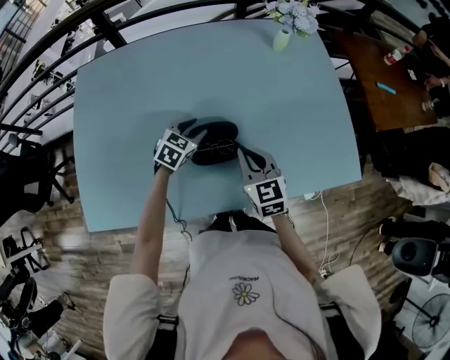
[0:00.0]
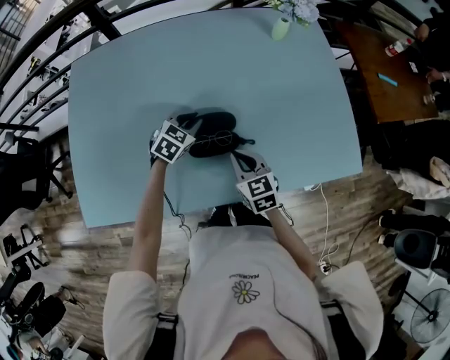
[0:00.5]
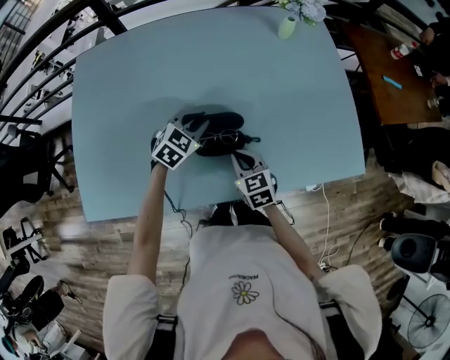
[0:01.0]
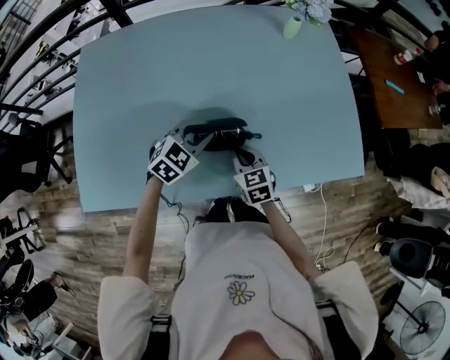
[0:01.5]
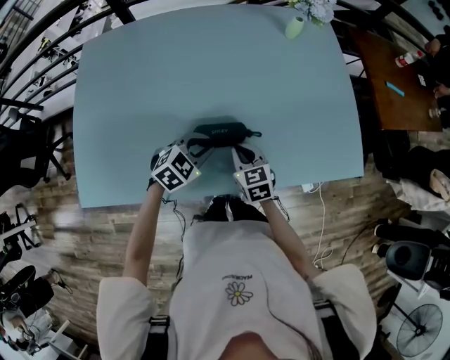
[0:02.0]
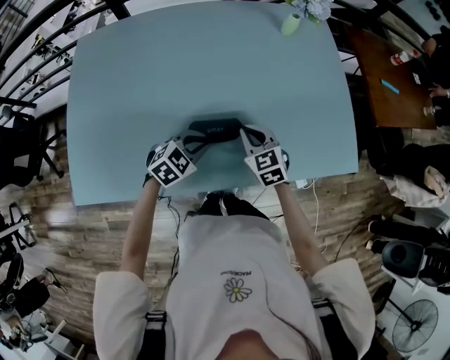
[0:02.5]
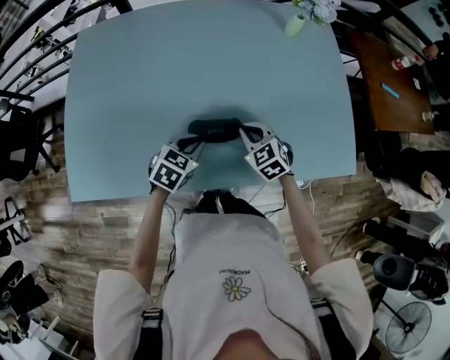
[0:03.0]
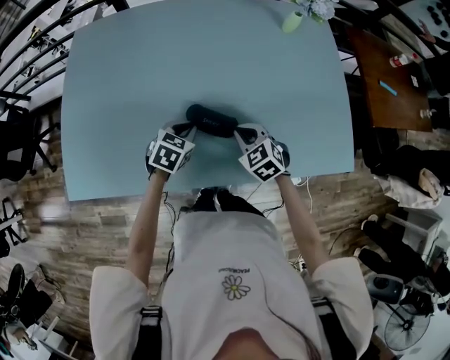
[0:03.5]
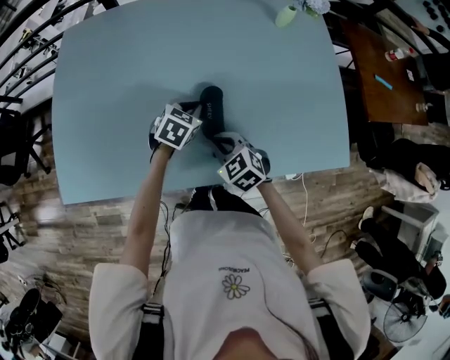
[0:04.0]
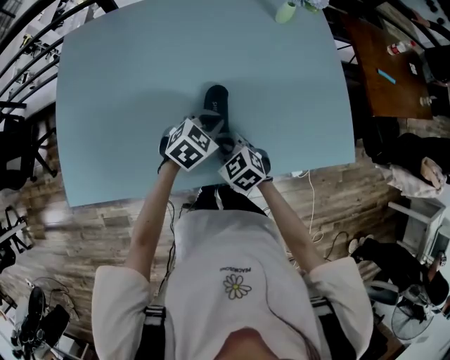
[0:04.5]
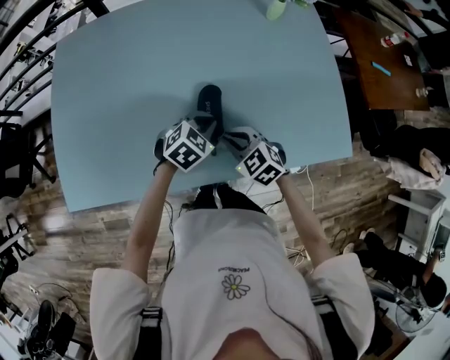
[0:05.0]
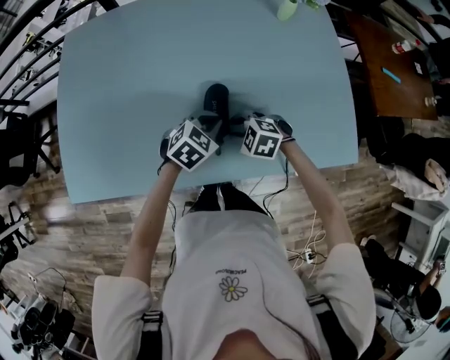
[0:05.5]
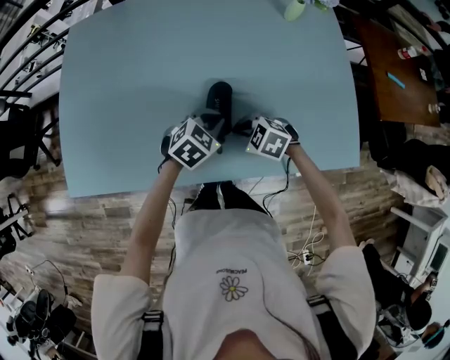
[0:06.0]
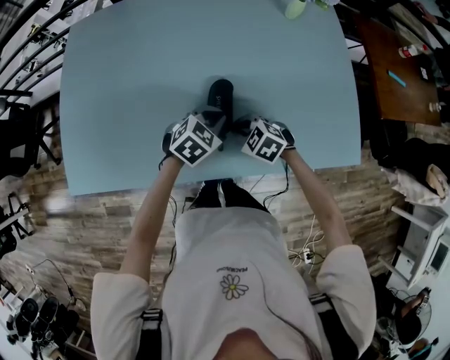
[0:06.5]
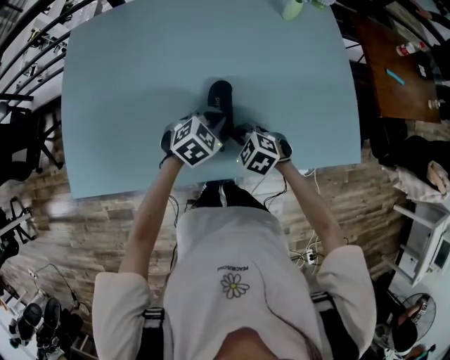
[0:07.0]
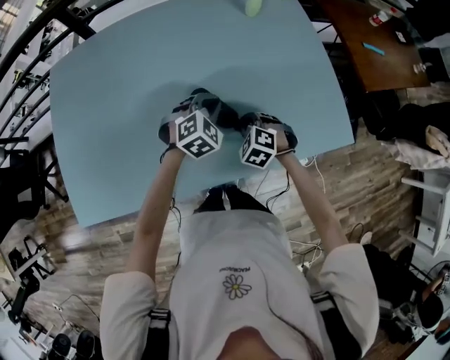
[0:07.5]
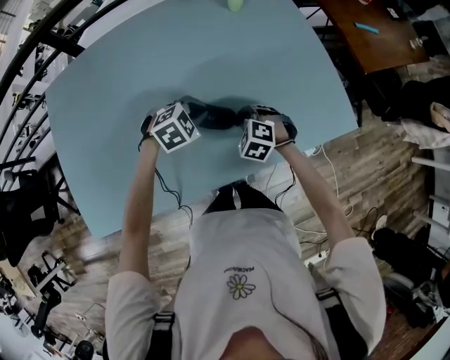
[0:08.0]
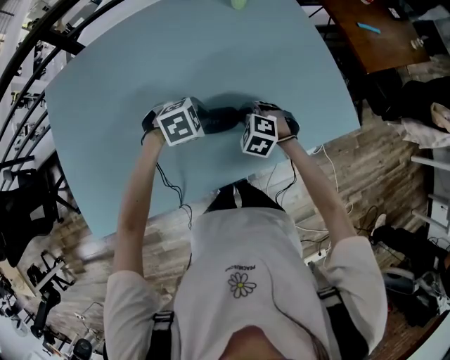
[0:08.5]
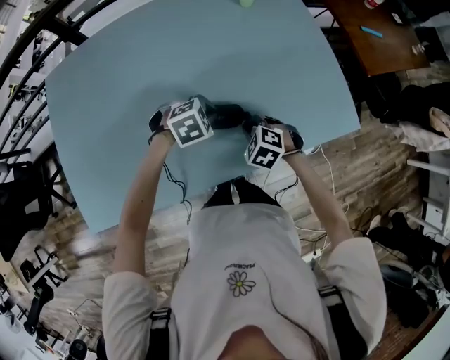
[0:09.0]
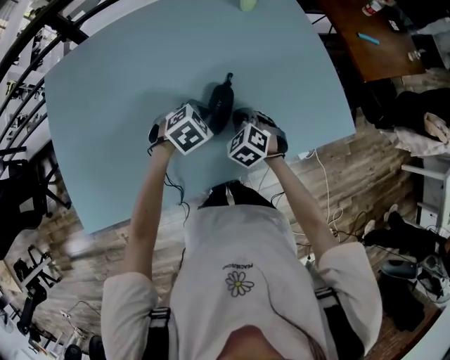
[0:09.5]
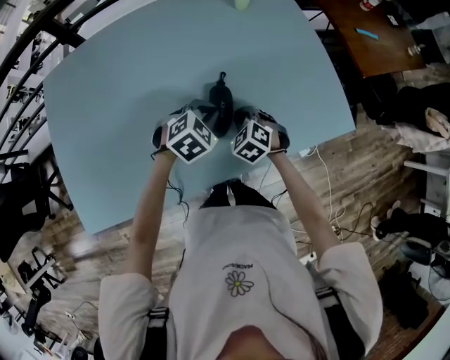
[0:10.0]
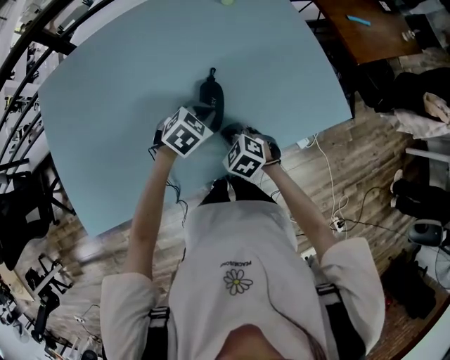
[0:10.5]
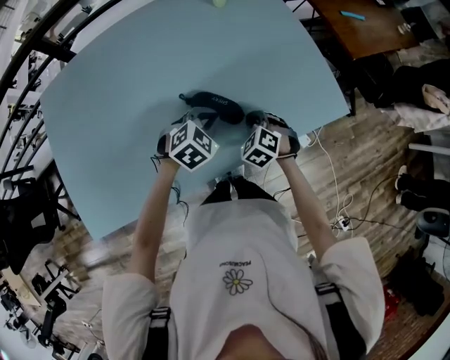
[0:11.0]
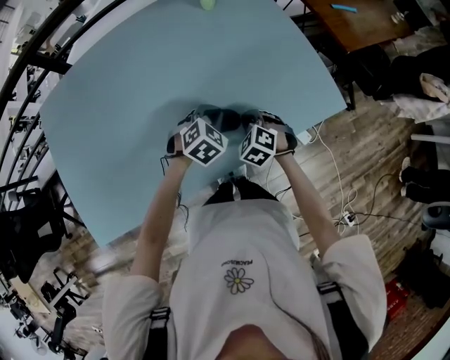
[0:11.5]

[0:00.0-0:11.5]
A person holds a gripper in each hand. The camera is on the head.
0:00.0 to 0:02.0: The right gripper shifts approximately 10 cm downward. The left gripper heads backward, covering about 15 cm, and closes.
0:02.0 to 0:04.0: The left gripper goes roughly 10 cm forward, and rotates approximately 30 degrees, while the right gripper rotates roughly 30 degrees.
0:04.0 to 0:06.0: The left gripper ends up roughly 10 cm from where it was. Meanwhile the right gripper ends up some 5 cm from where it was, changes its angle by approximately 30 degrees, and opens, then closes again.
0:06.0 to 0:07.5: The left gripper ends up approximately 10 cm from where it was, and rotates about 30 degrees. Meanwhile the right gripper shifts by approximately 10 cm, and swivels about 30 degrees.
0:07.5 to 0:09.5: The left gripper moves roughly 5 cm, and changes its angle by some 20 degrees.
0:09.5 to 0:11.5: Both grippers travel together to the right, approximately 10 cm.

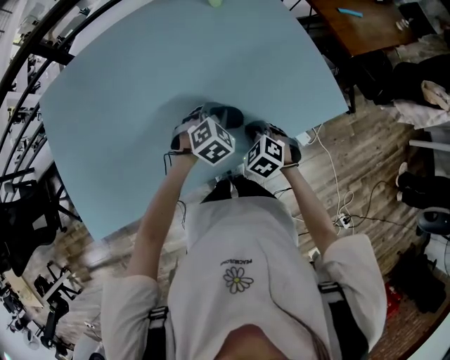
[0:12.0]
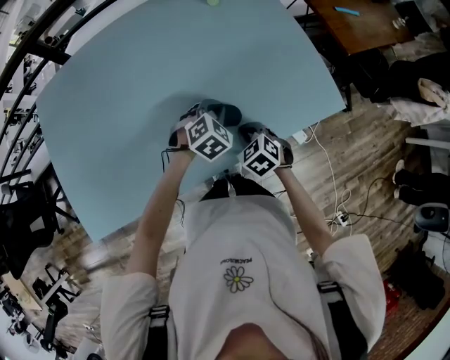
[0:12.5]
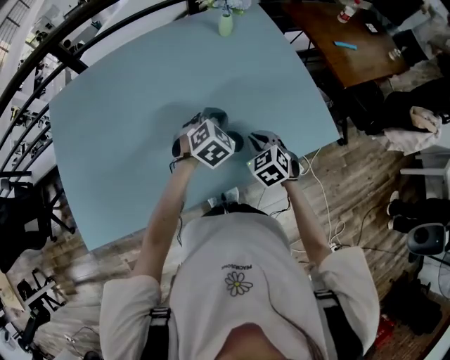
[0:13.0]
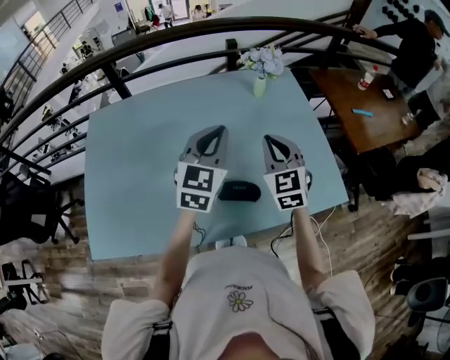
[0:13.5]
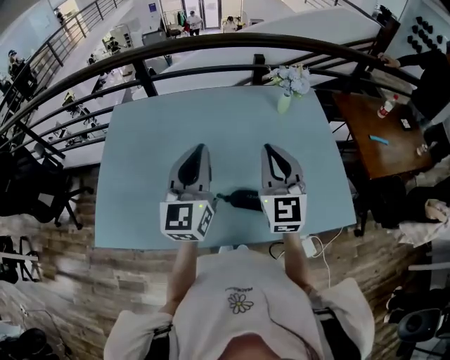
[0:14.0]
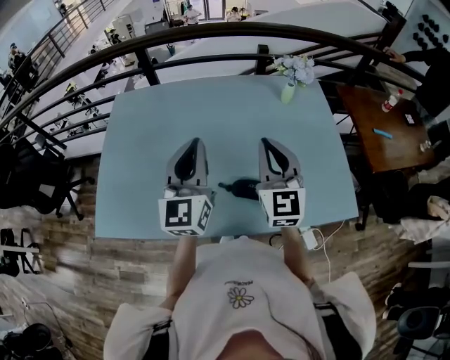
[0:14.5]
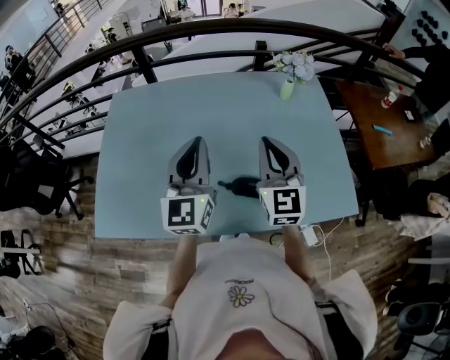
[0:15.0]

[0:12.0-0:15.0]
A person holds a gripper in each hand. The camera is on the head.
0:12.0 to 0:13.5: The right gripper goes approximately 30 cm upward and forward, and tips its fingers upward by roughly 40 degrees; the left gripper shifts about 30 cm upward, and angles its fingers upward, by about 40 degrees.
0:13.5 to 0:15.0: The left gripper goes about 15 cm to the left and backward, and changes its angle by approximately 30 degrees, while the right gripper goes some 10 cm to the left and upward.

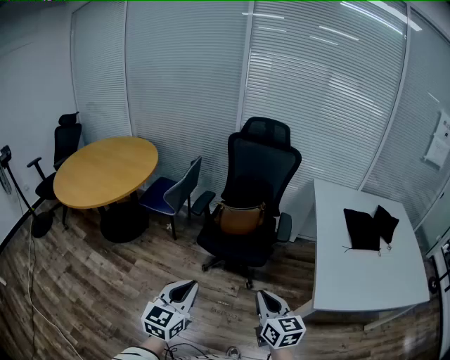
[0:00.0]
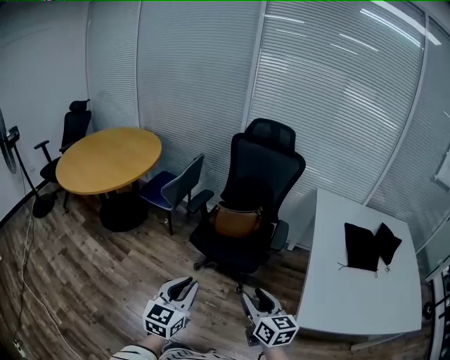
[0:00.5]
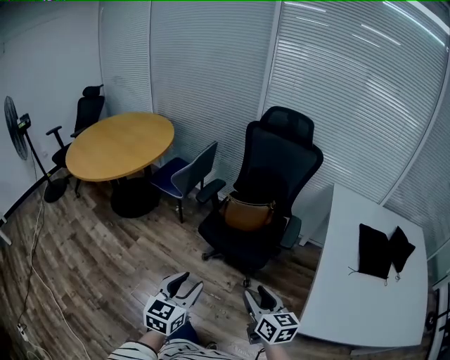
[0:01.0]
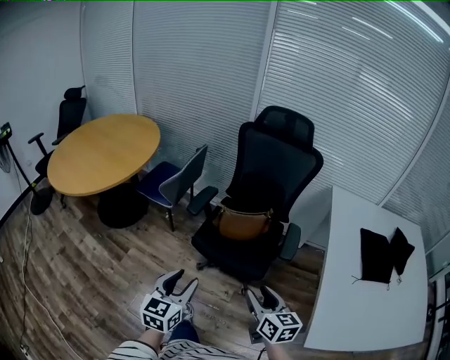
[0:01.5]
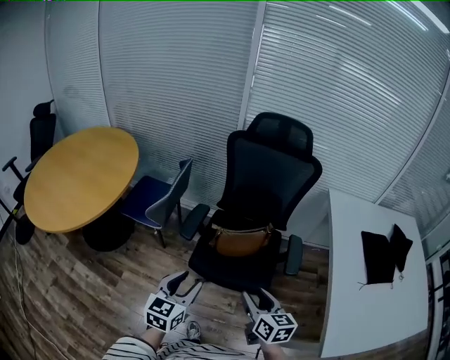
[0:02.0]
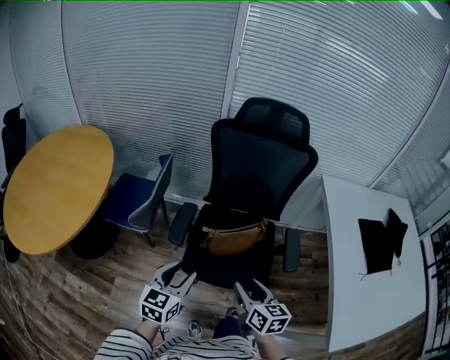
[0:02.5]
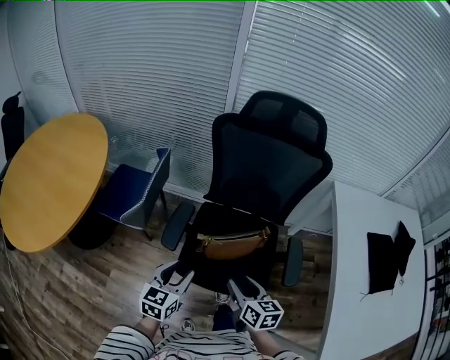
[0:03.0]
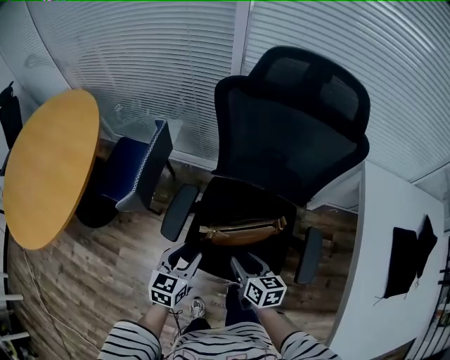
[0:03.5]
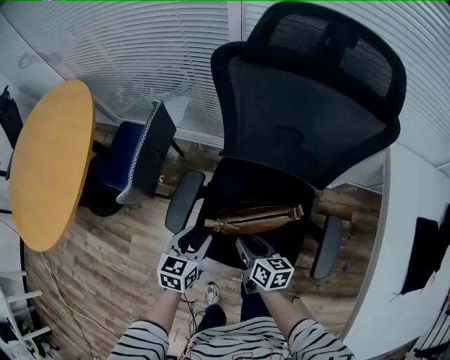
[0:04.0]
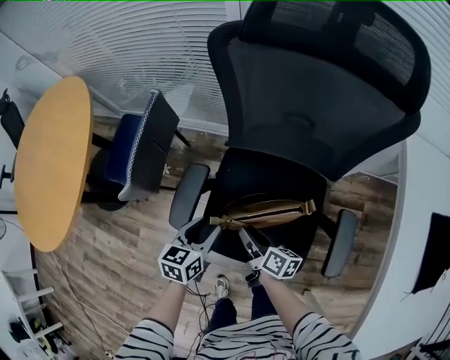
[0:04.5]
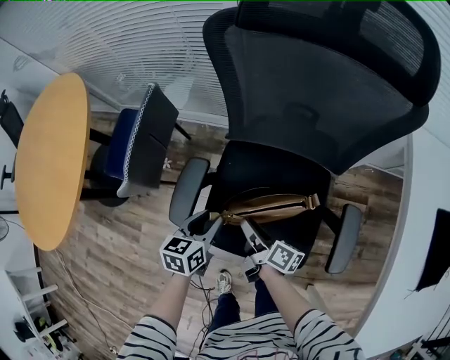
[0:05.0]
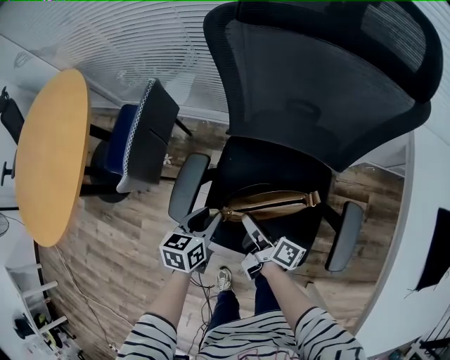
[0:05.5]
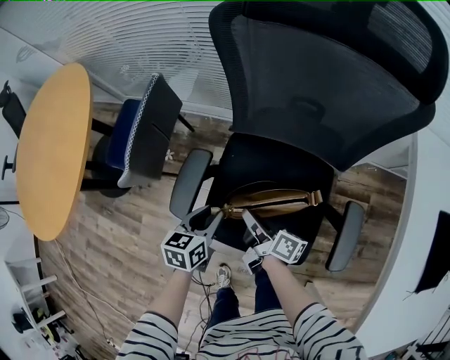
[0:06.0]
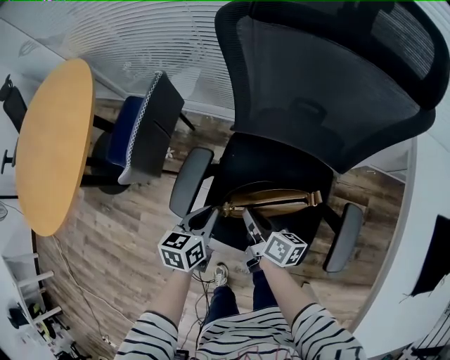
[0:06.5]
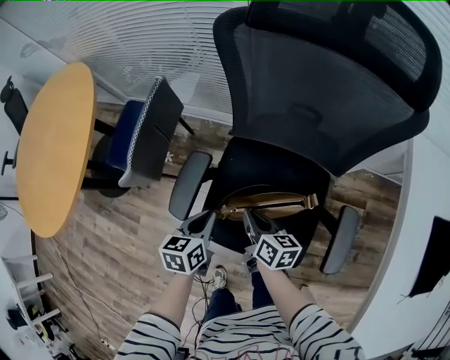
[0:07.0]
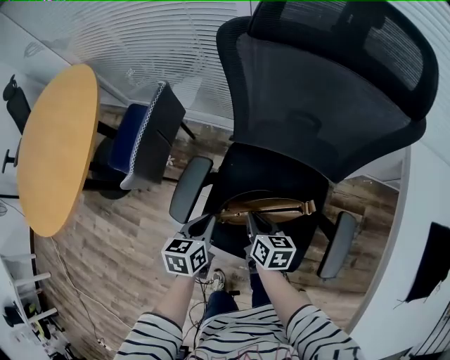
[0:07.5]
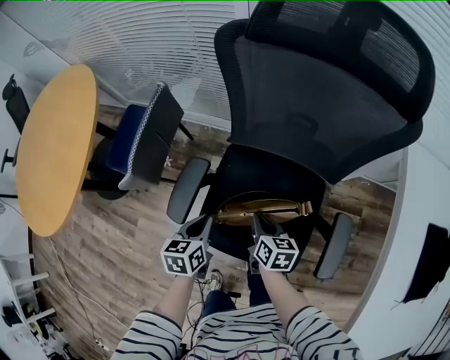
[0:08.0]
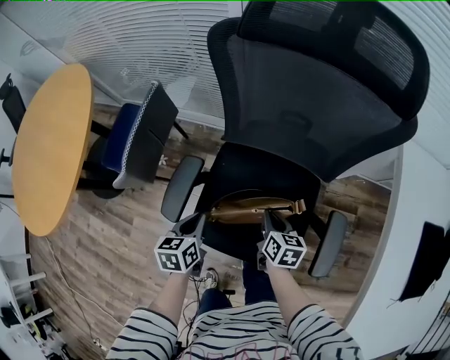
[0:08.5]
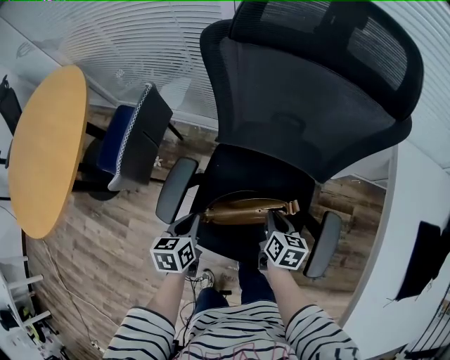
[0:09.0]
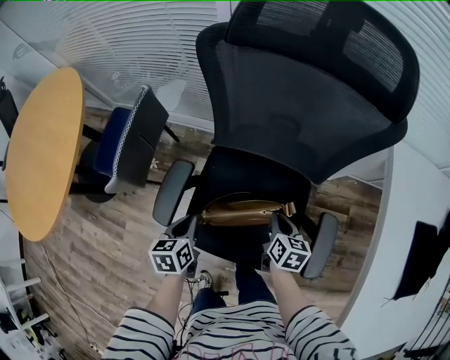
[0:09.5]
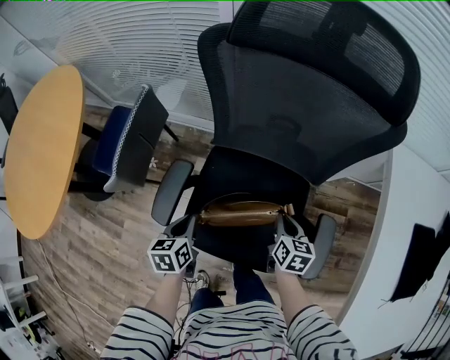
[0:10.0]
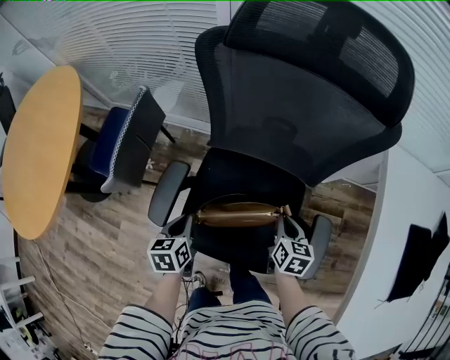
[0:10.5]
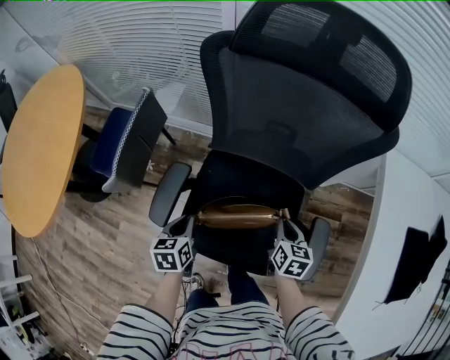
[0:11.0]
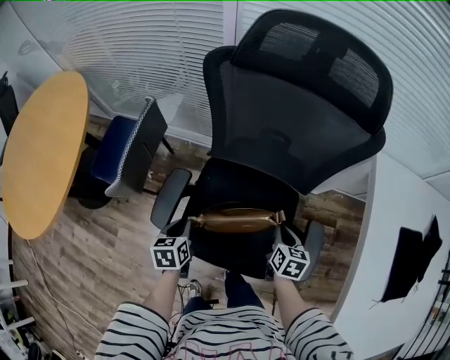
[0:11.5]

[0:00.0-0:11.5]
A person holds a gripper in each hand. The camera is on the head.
0:00.0 to 0:02.0: The two grippers go roughly 30 cm forward. The left gripper opens up; the right gripper opens up.
0:02.0 to 0:04.0: Both grippers move forward and downward, approximately 40 cm. The right gripper swivels some 20 degrees.
0:04.0 to 0:06.0: The right gripper shifts by about 5 cm, swivels some 40 degrees, and closes.
0:06.0 to 0:07.5: The left gripper closes up, while the right gripper rotates about 50 degrees.
0:07.5 to 0:09.5: The right gripper heads to the right, covering roughly 15 cm.
0:09.5 to 0:11.5: The right gripper moves some 5 cm.
